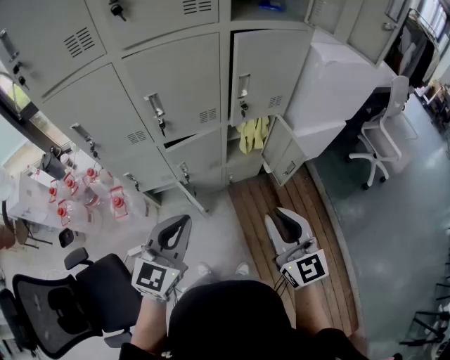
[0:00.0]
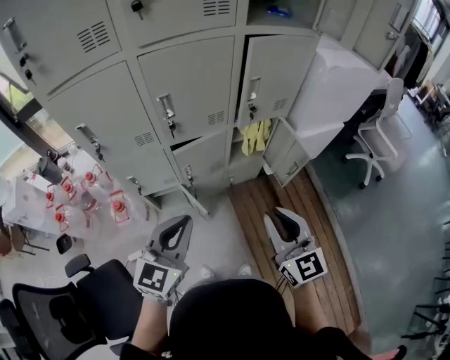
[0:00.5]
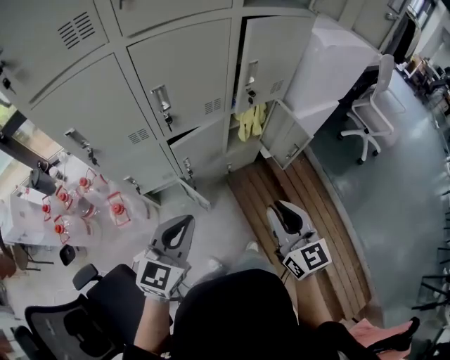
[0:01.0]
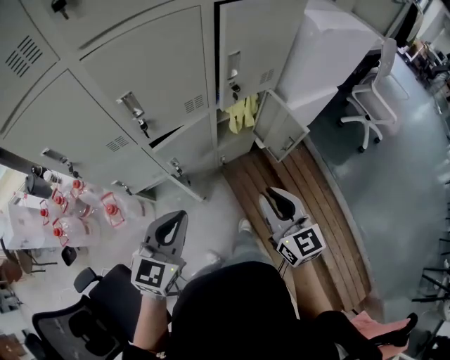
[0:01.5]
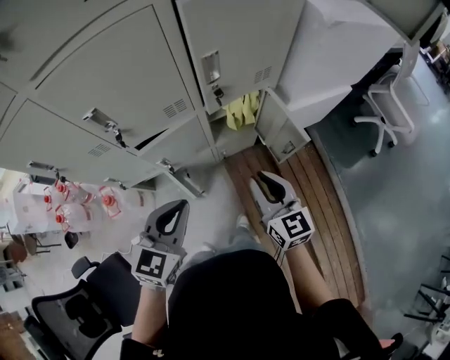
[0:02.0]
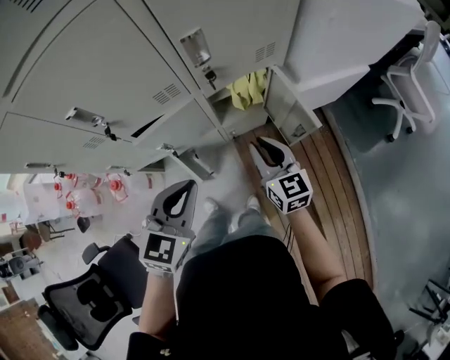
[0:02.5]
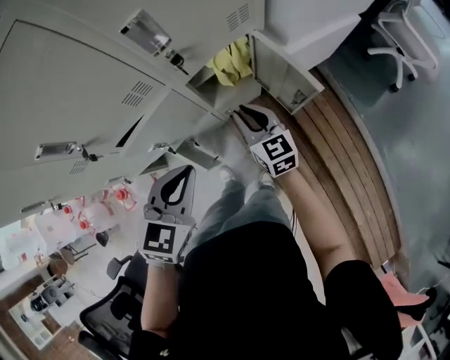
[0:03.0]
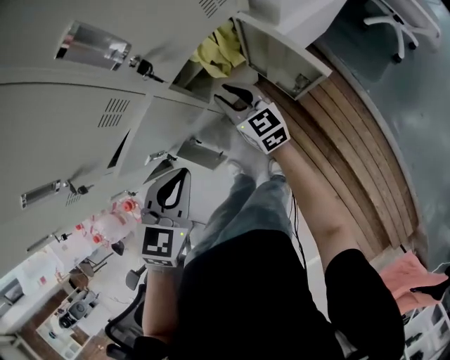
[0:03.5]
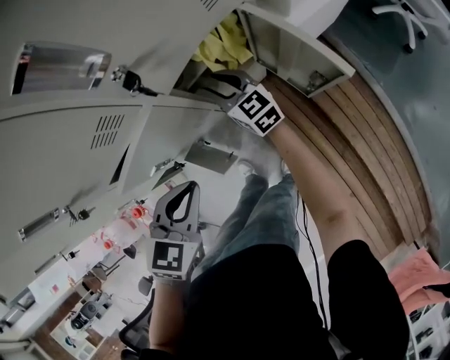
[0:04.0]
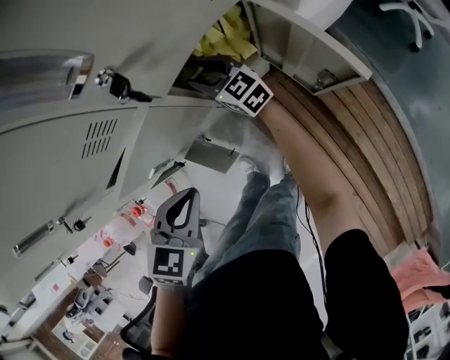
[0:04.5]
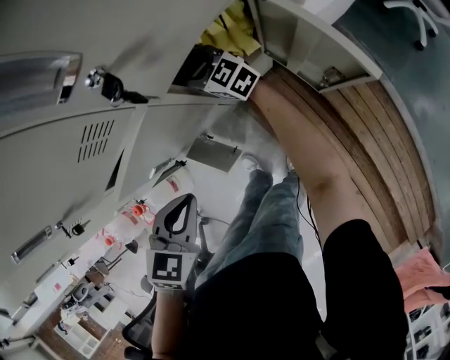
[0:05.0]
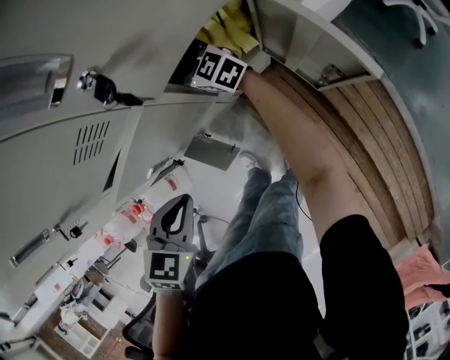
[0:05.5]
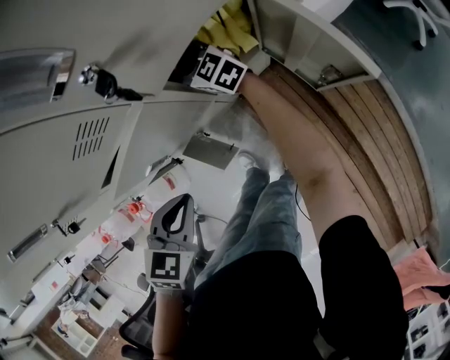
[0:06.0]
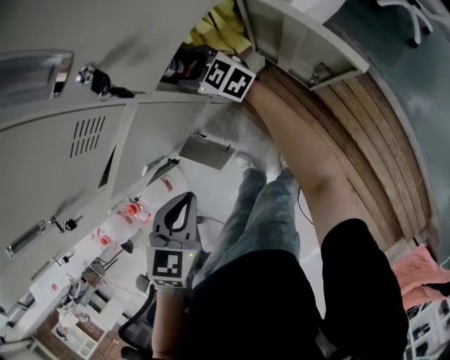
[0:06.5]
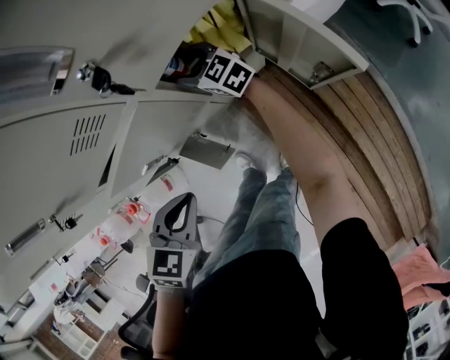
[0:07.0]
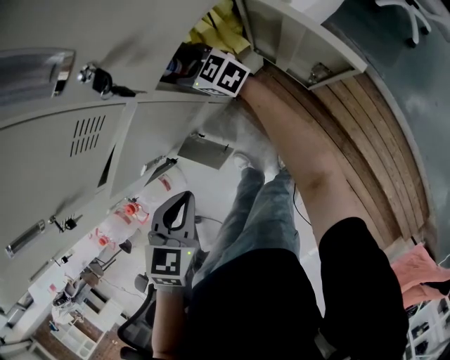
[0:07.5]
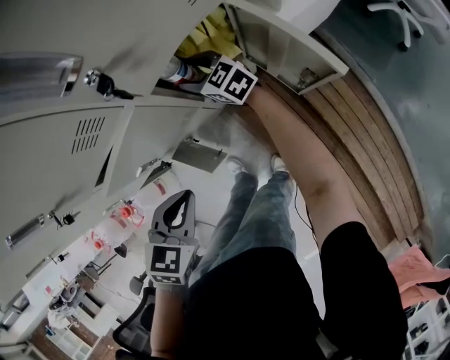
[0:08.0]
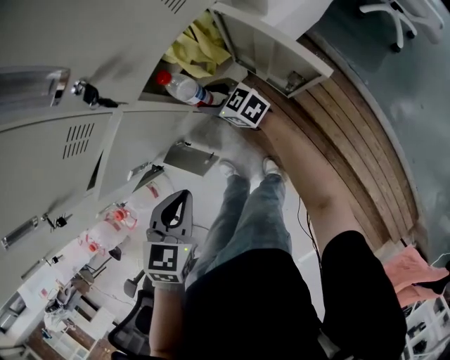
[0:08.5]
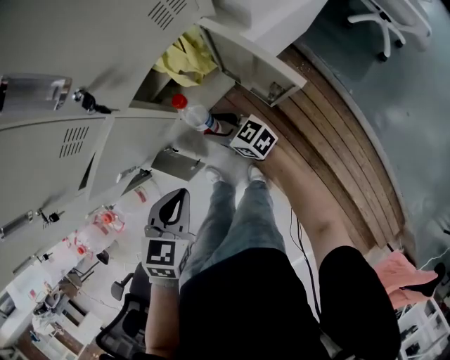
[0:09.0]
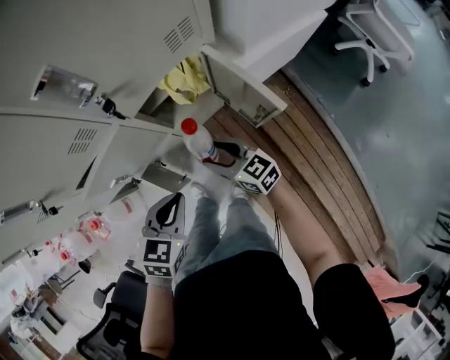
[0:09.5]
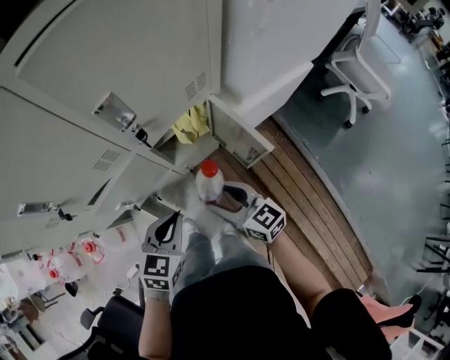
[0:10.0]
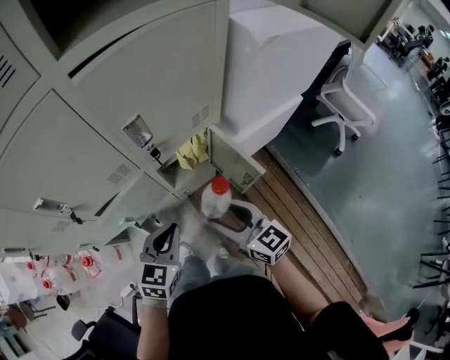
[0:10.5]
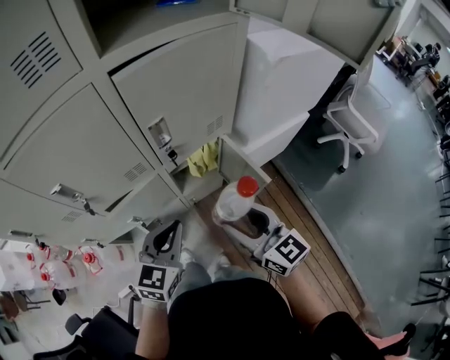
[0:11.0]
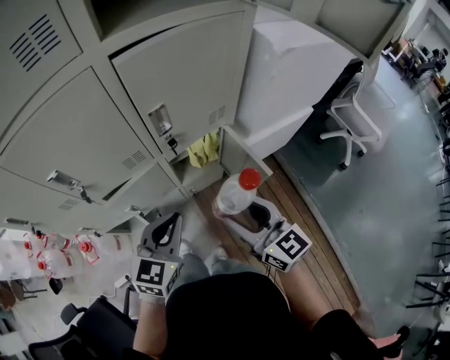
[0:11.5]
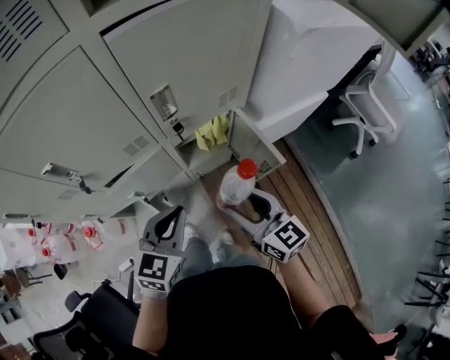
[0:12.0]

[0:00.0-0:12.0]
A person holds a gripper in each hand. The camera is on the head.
0:00.0 to 0:02.0: The two grippers go approximately 20 cm forward and downward.
0:02.0 to 0:04.0: The left gripper shifts about 20 cm downward and forward, and changes its angle by roughly 30 degrees. The right gripper moves forward and downward, about 35 cm.
0:04.0 to 0:06.0: The right gripper goes approximately 10 cm to the left and forward, and changes its angle by about 20 degrees, while the left gripper shifts by some 5 cm.
0:06.0 to 0:08.0: The right gripper goes some 5 cm to the right.
0:08.0 to 0:10.0: The right gripper is displaced backward and upward by roughly 30 cm. The left gripper heads to the right and upward, covering approximately 10 cm.
0:10.0 to 0:12.0: Both grippers move upward, roughly 10 cm.

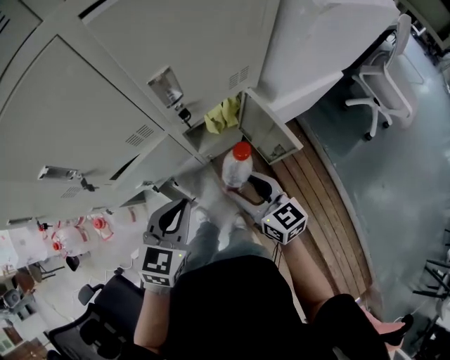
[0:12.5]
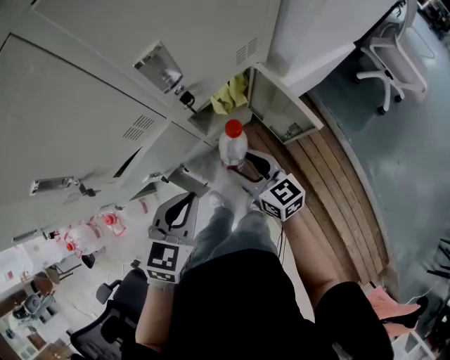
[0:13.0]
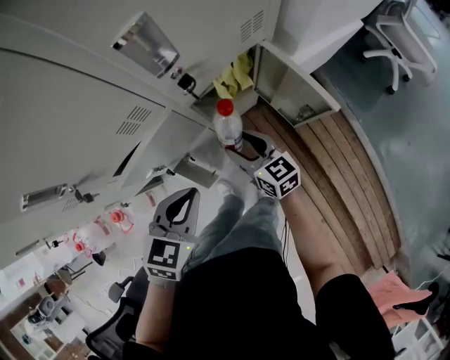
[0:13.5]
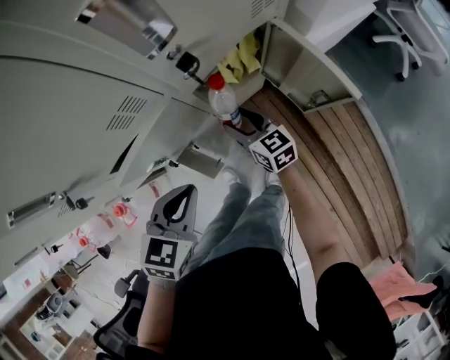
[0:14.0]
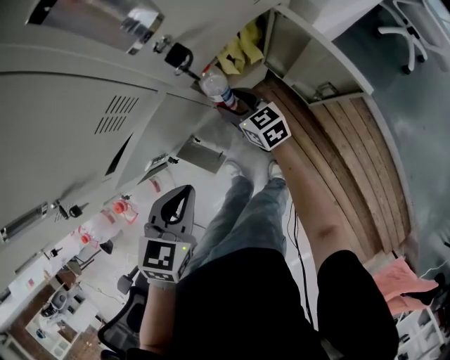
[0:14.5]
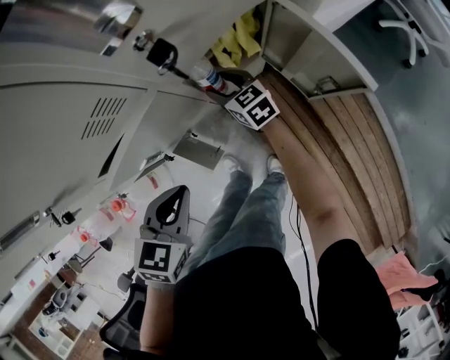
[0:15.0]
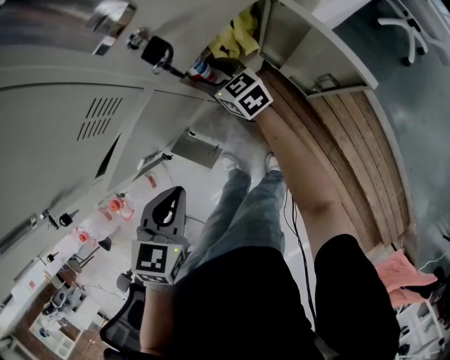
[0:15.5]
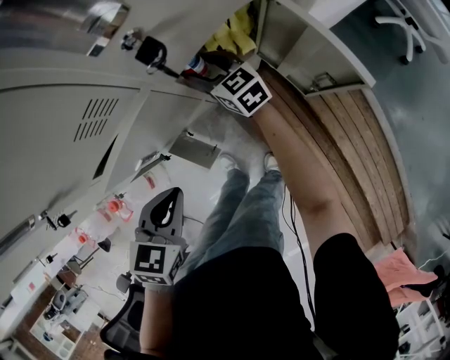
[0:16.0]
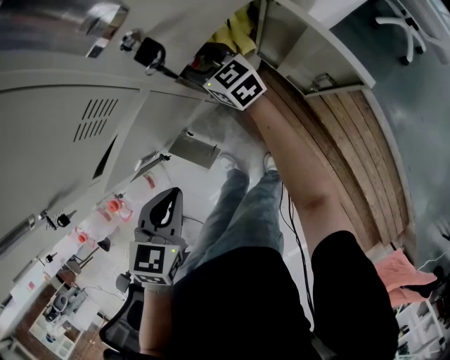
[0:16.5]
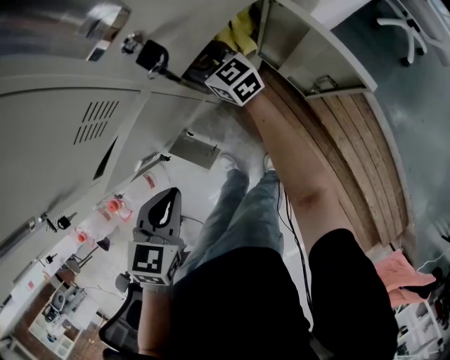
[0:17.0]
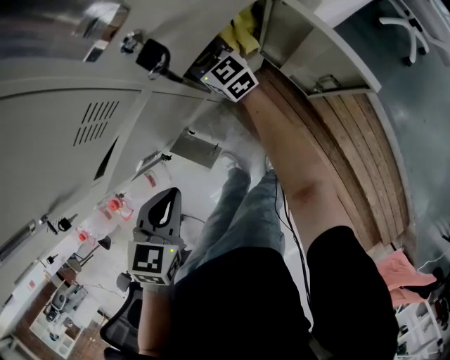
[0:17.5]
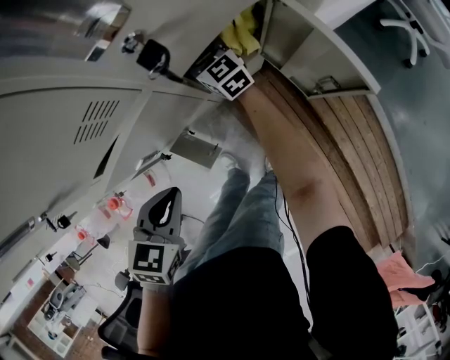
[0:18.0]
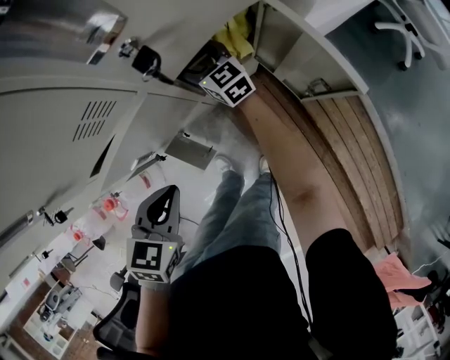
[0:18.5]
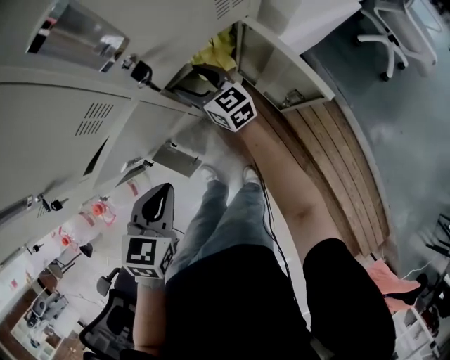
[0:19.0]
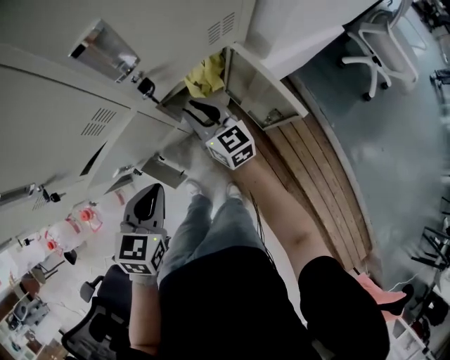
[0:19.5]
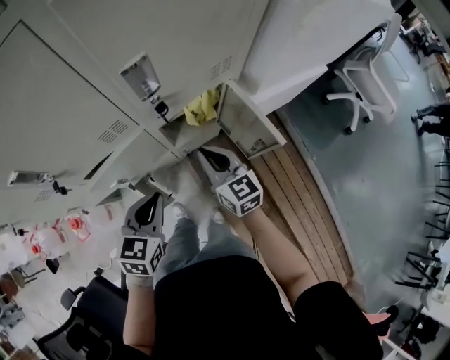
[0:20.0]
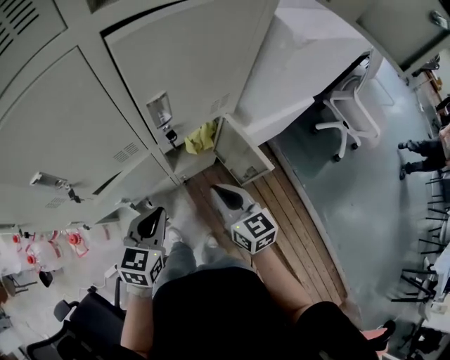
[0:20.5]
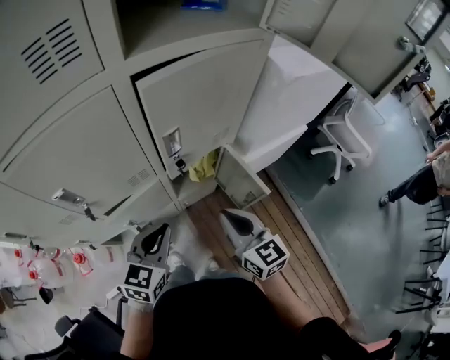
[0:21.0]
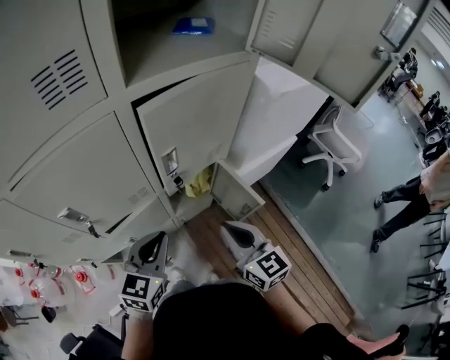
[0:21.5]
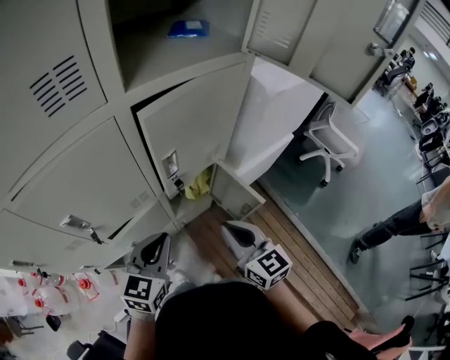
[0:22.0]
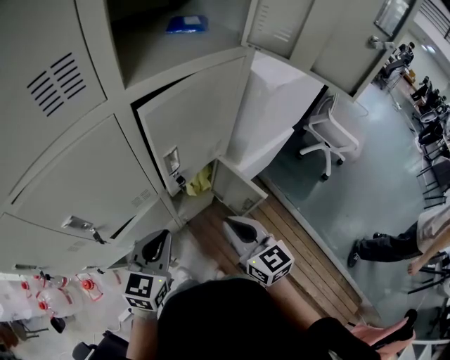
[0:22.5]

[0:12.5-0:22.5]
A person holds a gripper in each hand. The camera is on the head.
0:12.5 to 0:14.5: The left gripper is displaced downward and to the left by approximately 15 cm, while the right gripper goes roughly 30 cm downward, forward and to the left.
0:14.5 to 0:16.5: The right gripper travels forward and upward by approximately 10 cm.
0:16.5 to 0:18.5: The grippers stay close to where they were, moving slightly.
0:18.5 to 0:20.5: The right gripper heads backward, upward and to the right, covering approximately 35 cm, and closes, while the left gripper shifts approximately 15 cm upward and to the right, and changes its angle by approximately 20 degrees.
0:20.5 to 0:22.5: The two grippers go some 10 cm upward.

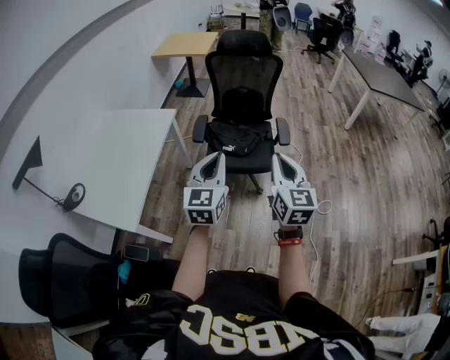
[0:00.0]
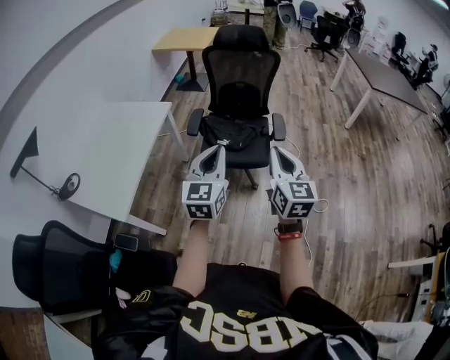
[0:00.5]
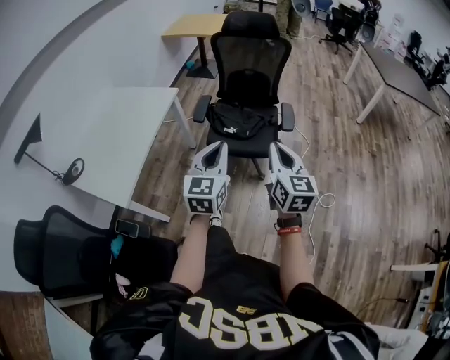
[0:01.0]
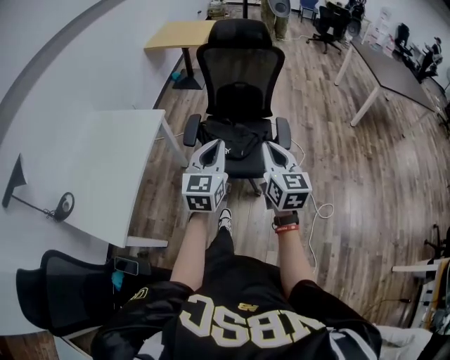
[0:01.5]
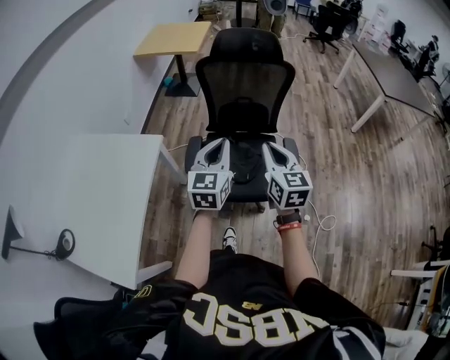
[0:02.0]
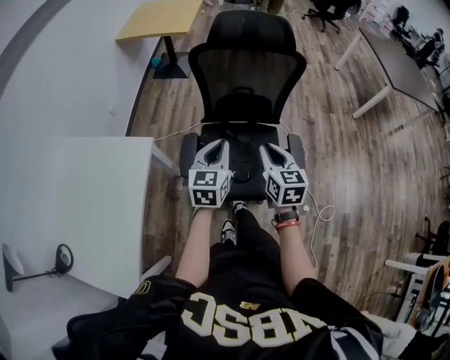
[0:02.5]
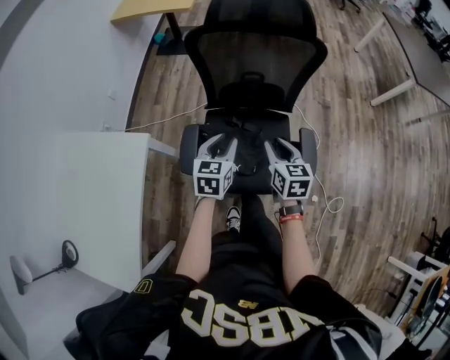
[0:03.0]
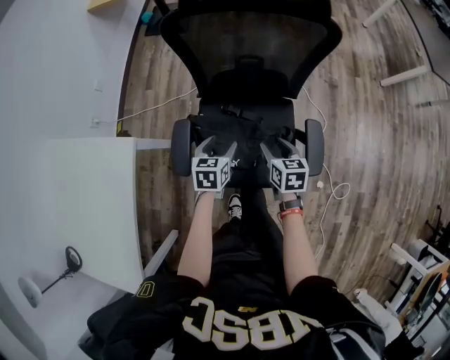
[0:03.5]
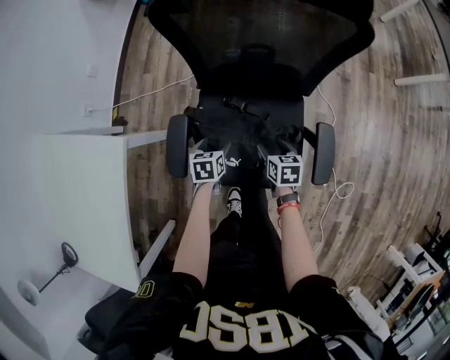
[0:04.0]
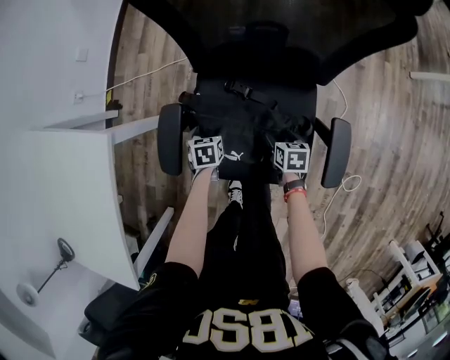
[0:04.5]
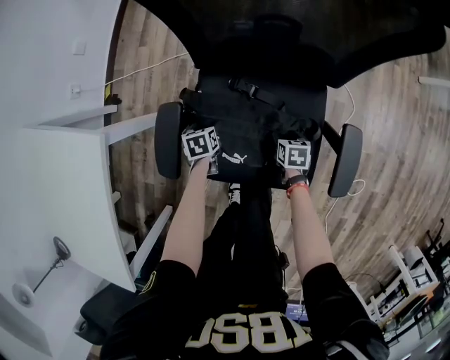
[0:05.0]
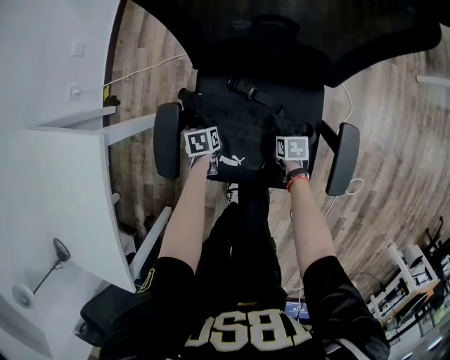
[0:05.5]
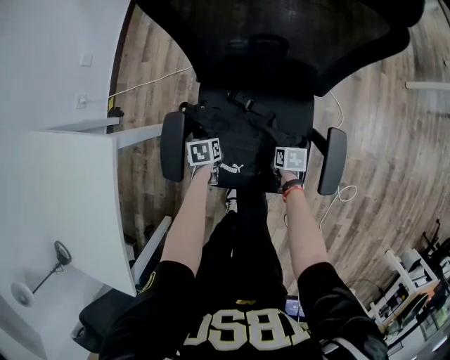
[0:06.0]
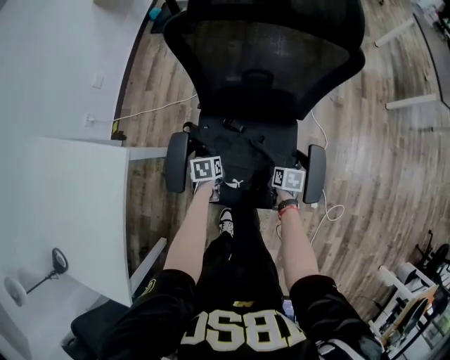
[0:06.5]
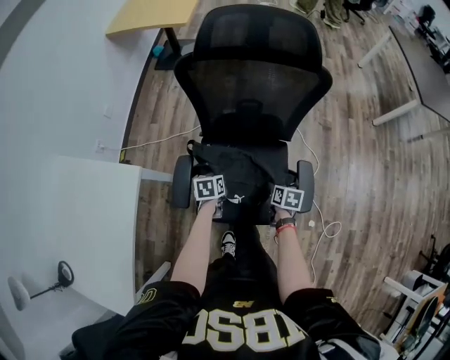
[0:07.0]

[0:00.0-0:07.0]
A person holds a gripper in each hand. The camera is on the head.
0:00.0 to 0:02.0: The two grippers go about 35 cm forward.
0:02.0 to 0:03.5: The two grippers go some 40 cm downward and forward. The right gripper tilts its fingers some 30 degrees downward, and opens its fingers; the left gripper points its fingers approximately 40 degrees further downward, and opens its fingers.
0:03.5 to 0:05.0: The grippers both shift downward by approximately 30 cm. The left gripper changes its angle by roughly 30 degrees. The right gripper rotates some 20 degrees.
0:05.0 to 0:07.0: The grippers both shift upward by approximately 20 cm. The right gripper closes, while the left gripper closes.
